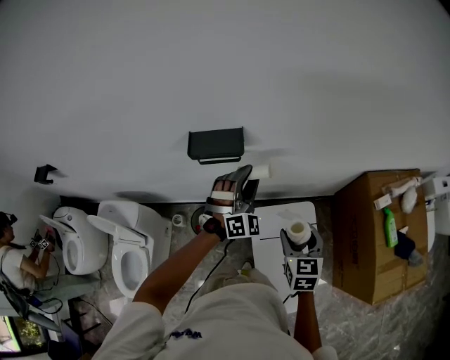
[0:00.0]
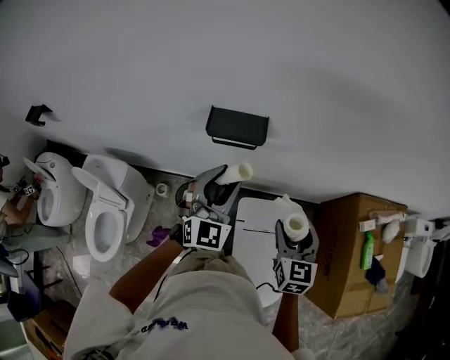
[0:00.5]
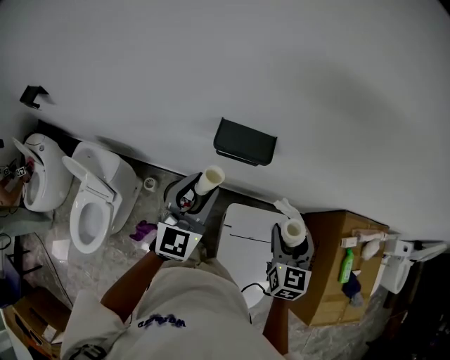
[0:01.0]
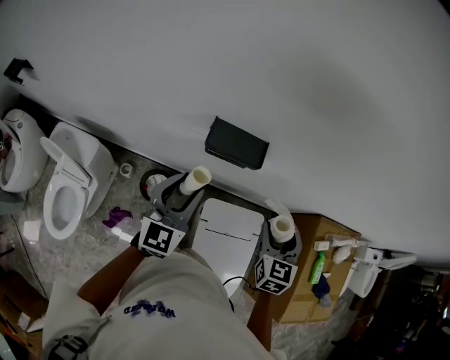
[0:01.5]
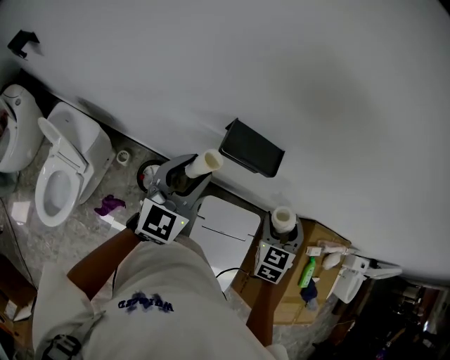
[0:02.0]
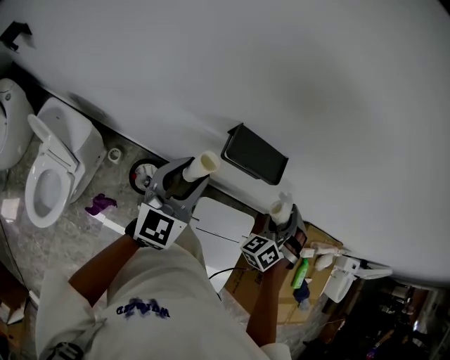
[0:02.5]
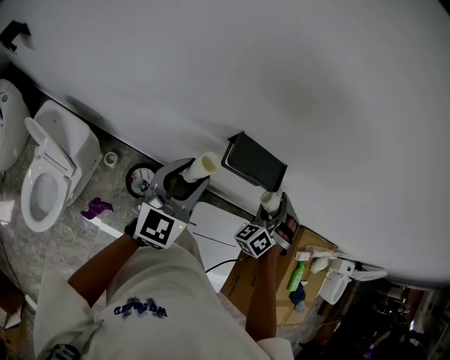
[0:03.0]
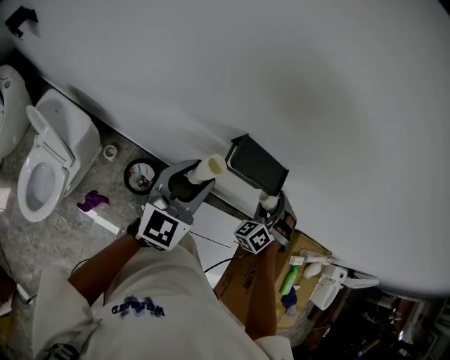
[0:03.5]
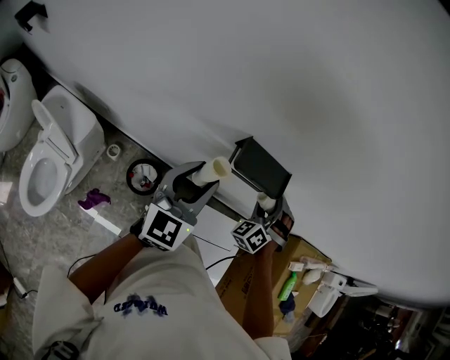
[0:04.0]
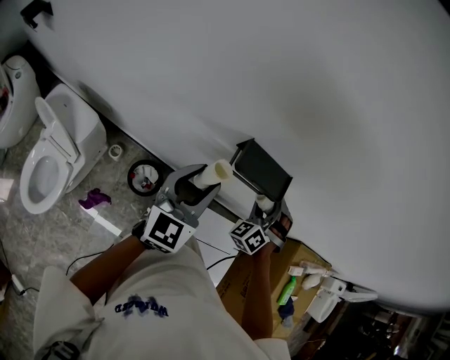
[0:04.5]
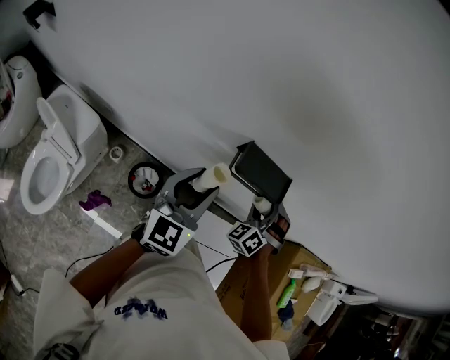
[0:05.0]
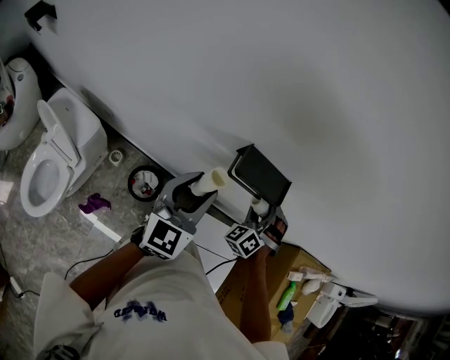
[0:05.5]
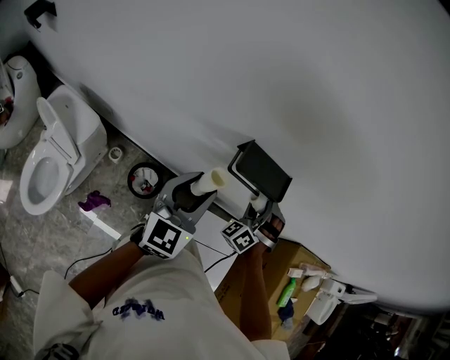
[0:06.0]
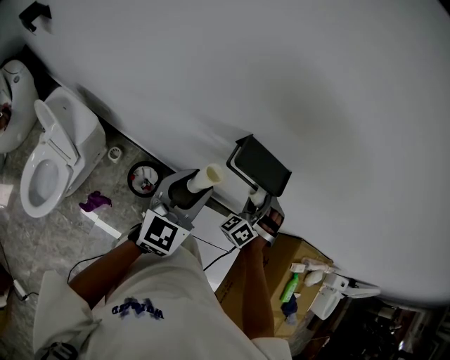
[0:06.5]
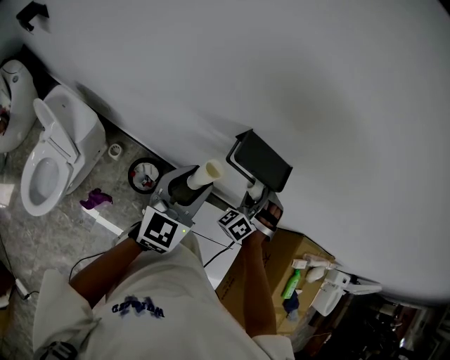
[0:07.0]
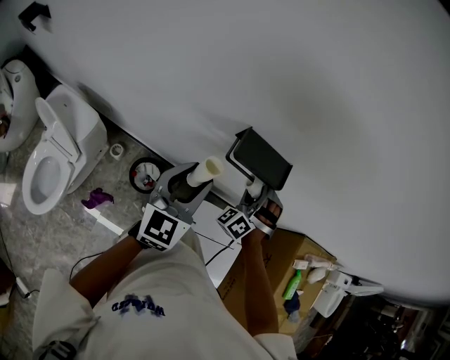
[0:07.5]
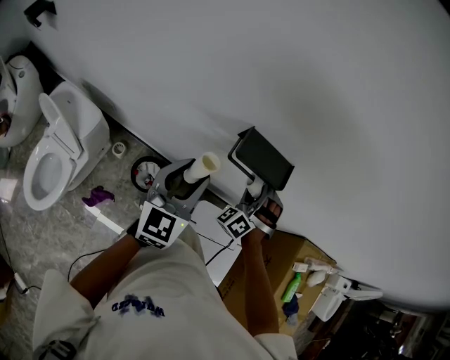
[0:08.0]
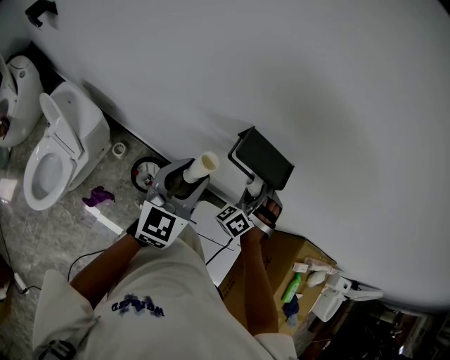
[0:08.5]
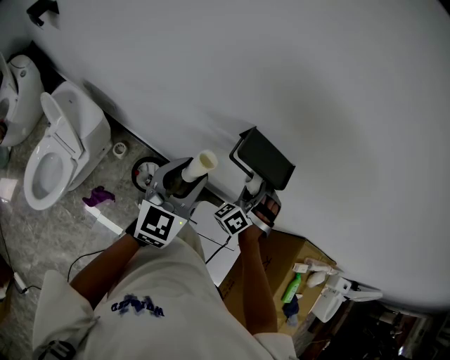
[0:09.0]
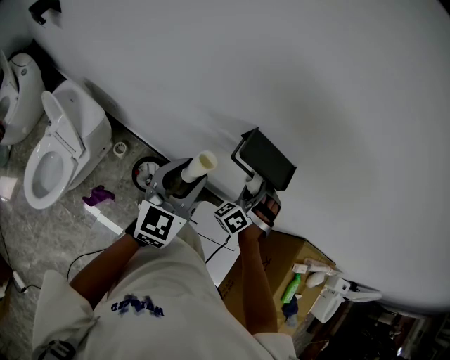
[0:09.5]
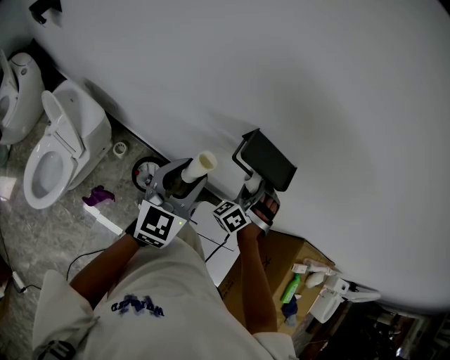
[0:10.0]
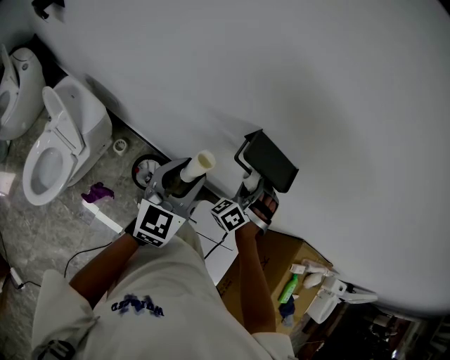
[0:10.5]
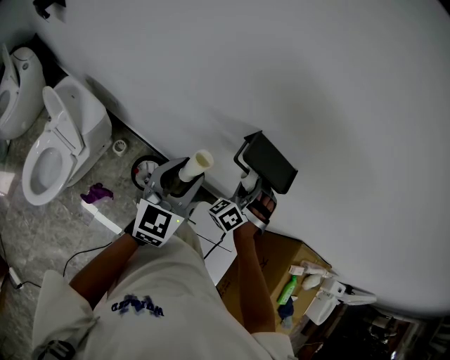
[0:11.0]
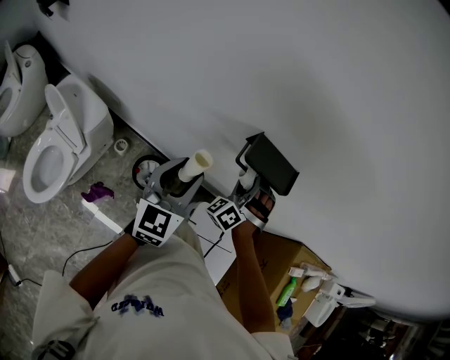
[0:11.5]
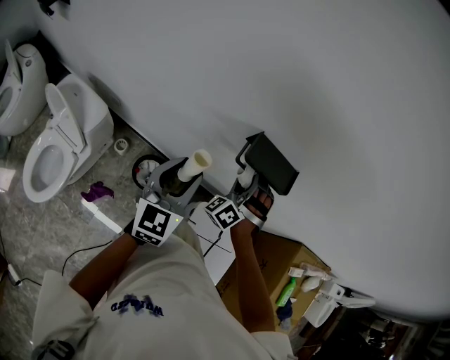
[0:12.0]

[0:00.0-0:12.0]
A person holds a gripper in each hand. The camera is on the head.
0:00.0 to 0:02.0: The left gripper is displaced to the left by roughly 20 cm, and rotates around the line of its fingers by some 60 degrees, counterclockwise from behind. The right gripper goes about 15 cm forward, to the left and upward, and rotates roughly 30 degrees.
0:02.0 to 0:04.0: The right gripper goes about 15 cm forward, downward and to the left, and rolls counterclockwise, seen from behind, by about 50 degrees.
0:04.0 to 0:08.0: The grippers make only small movements.
0:08.0 to 0:10.0: The grippers make only small movements.
0:10.0 to 0:12.0: The grippers make only small movements.

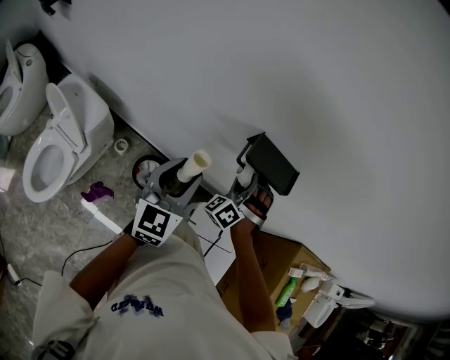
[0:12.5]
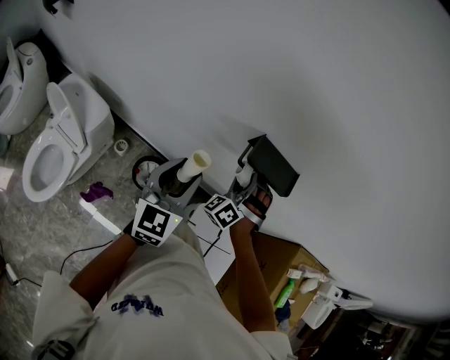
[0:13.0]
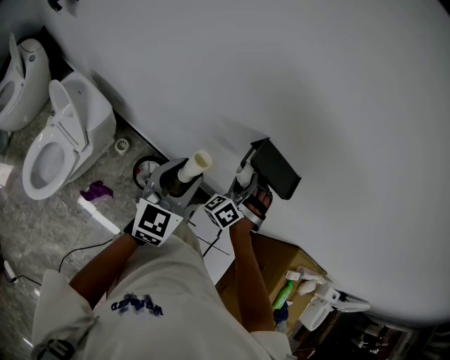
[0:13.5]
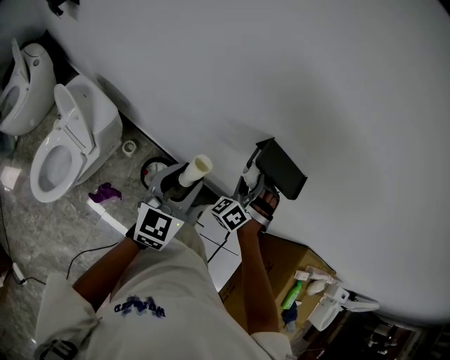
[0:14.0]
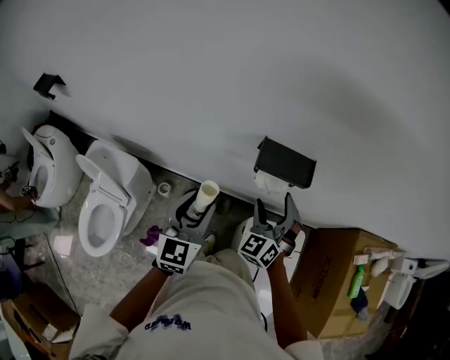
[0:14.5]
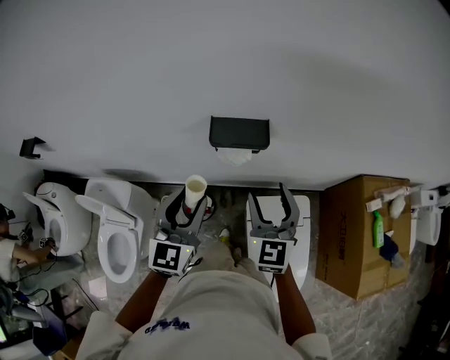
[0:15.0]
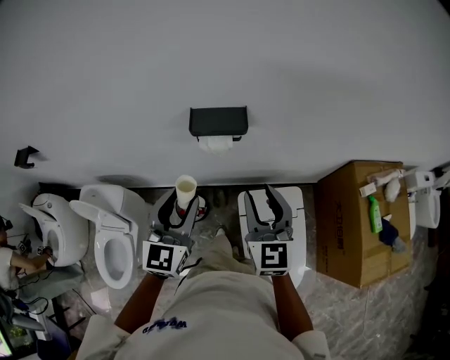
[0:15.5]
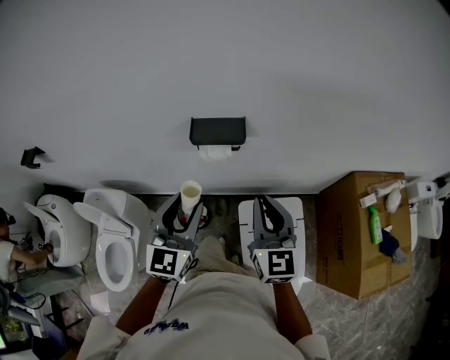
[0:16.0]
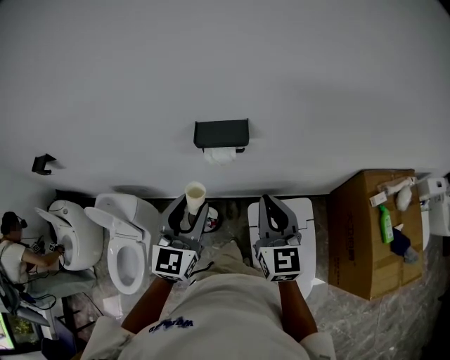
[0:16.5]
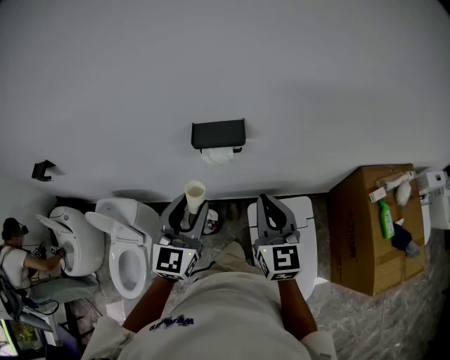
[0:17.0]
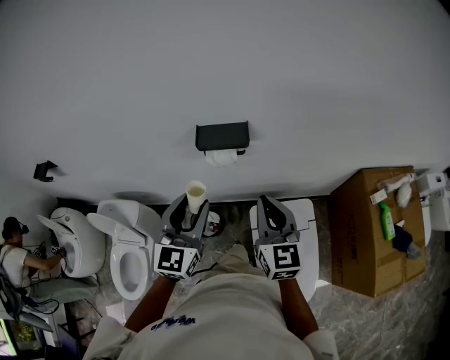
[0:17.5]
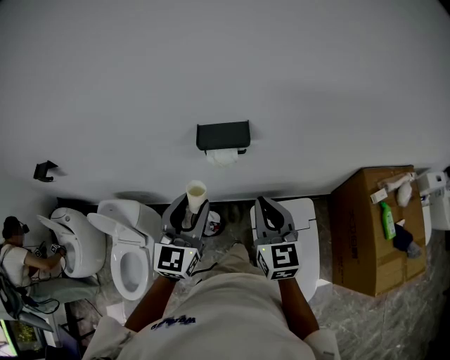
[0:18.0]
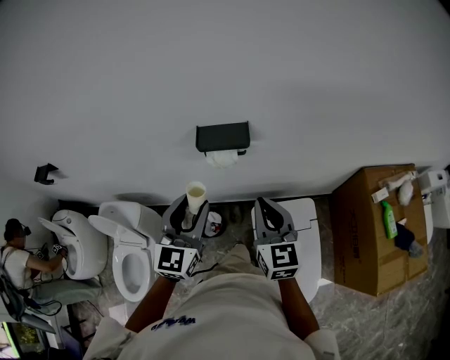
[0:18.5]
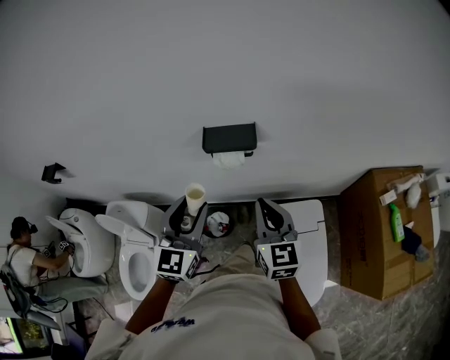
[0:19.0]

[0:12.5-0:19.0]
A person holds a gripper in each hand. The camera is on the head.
0:12.5 to 0:14.5: The right gripper heads backward, covering approximately 10 cm, and swivels approximately 40 degrees.
0:14.5 to 0:17.0: The right gripper is displaced backward, upward and to the right by about 20 cm, rolls clockwise, seen from behind, by approximately 50 degrees, and closes up; the left gripper travels to the right, upward and backward by approximately 15 cm.
0:17.0 to 0:19.0: The grippers stay close to where they were, moving slightly.

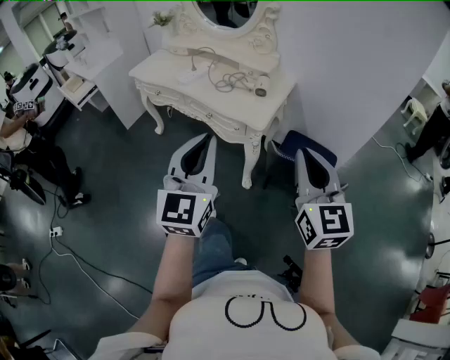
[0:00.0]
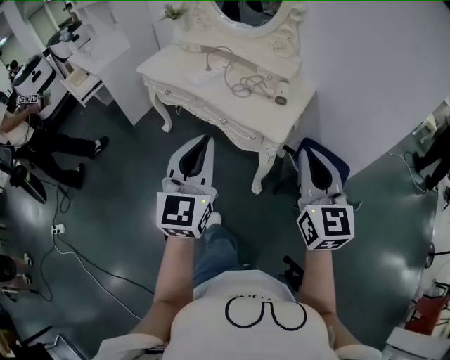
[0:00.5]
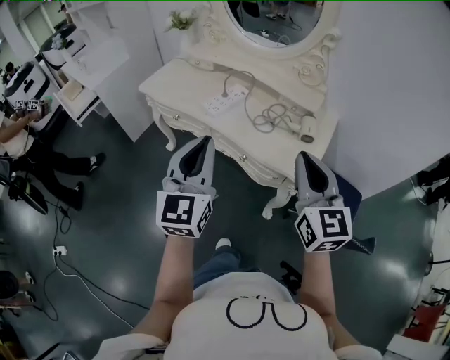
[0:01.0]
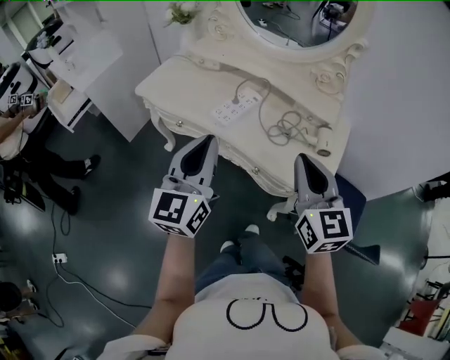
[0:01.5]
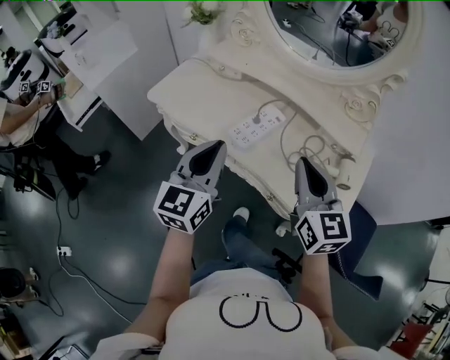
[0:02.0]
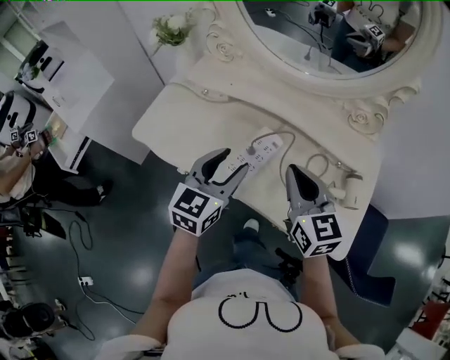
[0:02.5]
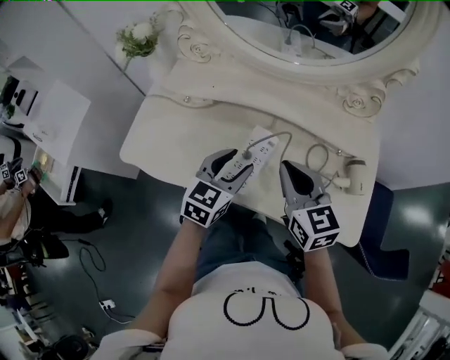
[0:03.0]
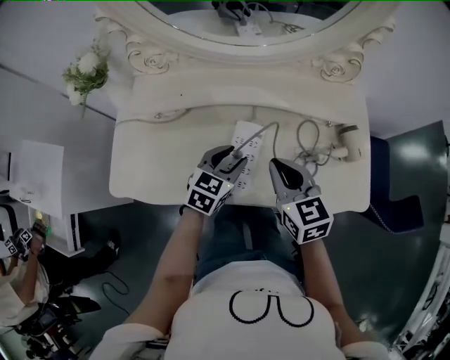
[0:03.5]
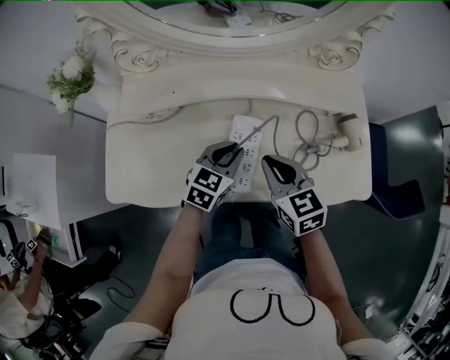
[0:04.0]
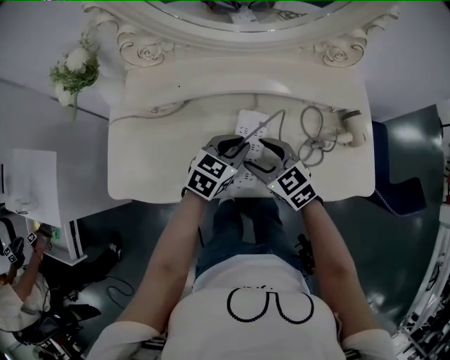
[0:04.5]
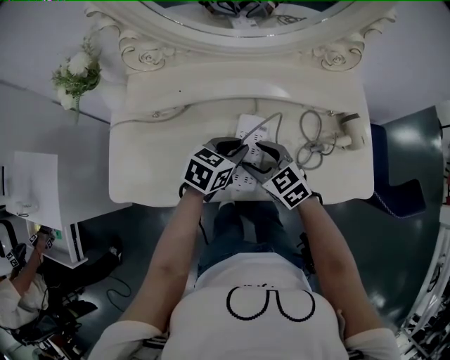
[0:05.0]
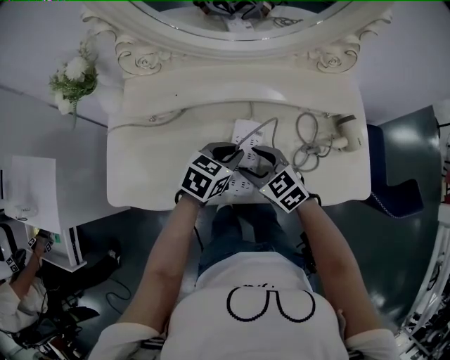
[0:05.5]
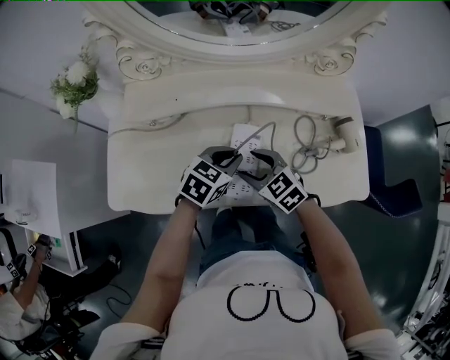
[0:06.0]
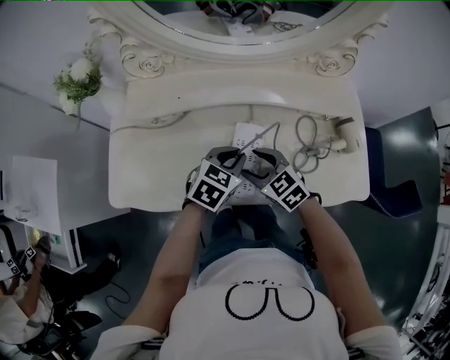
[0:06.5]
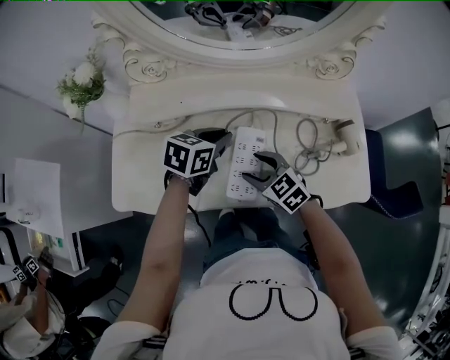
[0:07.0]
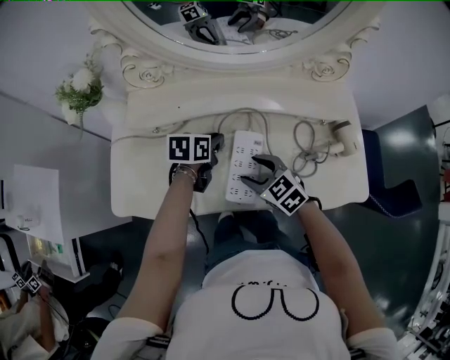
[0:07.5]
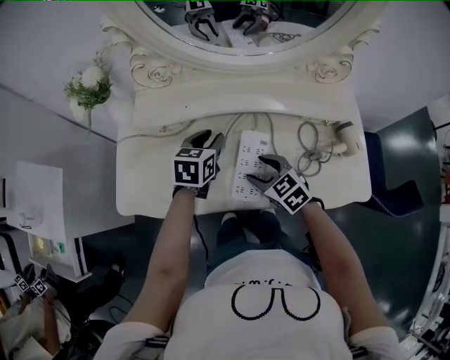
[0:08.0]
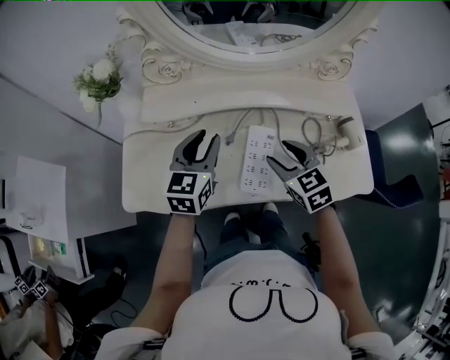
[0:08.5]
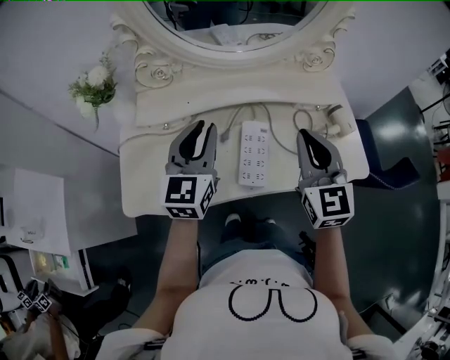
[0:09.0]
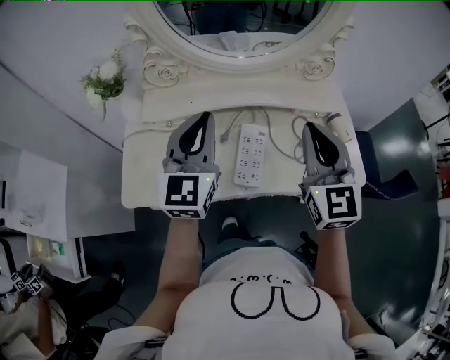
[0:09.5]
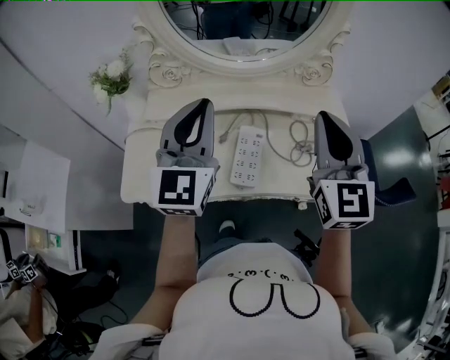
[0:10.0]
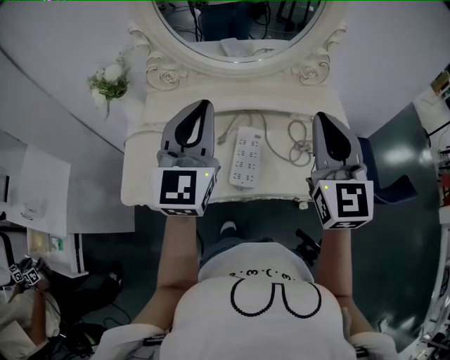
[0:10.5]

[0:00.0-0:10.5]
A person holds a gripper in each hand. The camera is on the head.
0:00.0 to 0:02.0: Both grippers are carried forward and to the left, roughly 60 cm.
0:02.0 to 0:04.0: The left gripper changes place by about 30 cm, tilts its fingers approximately 30 degrees downward, and opens, then closes once more, while the right gripper changes place by some 25 cm, and swivels about 30 degrees.
0:04.0 to 0:06.5: The right gripper goes about 10 cm downward and to the left, turns by approximately 20 degrees, and opens up.
0:06.5 to 0:08.5: The left gripper is displaced to the left and upward by approximately 15 cm, swivels about 30 degrees, and opens its fingers. Meanwhile the right gripper moves upward, some 10 cm.
0:08.5 to 0:10.5: The two grippers go about 25 cm upward. The right gripper tips its fingers upward by approximately 40 degrees, and closes up. The left gripper turns by some 30 degrees, and closes its fingers.
